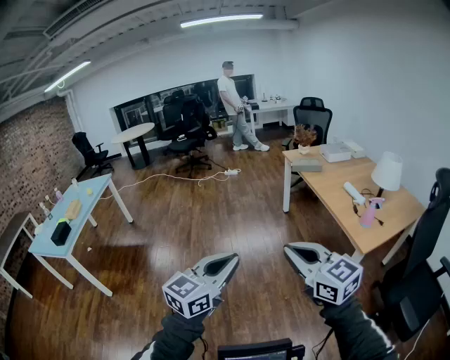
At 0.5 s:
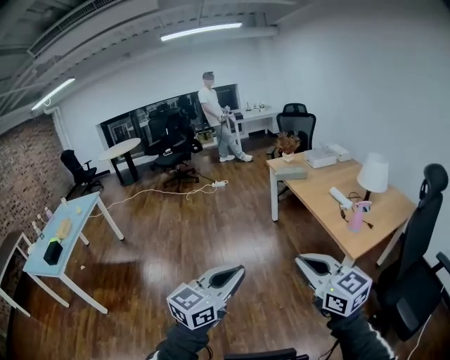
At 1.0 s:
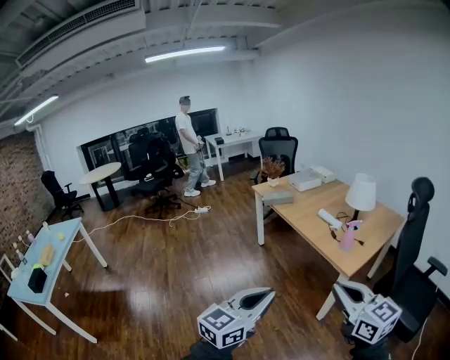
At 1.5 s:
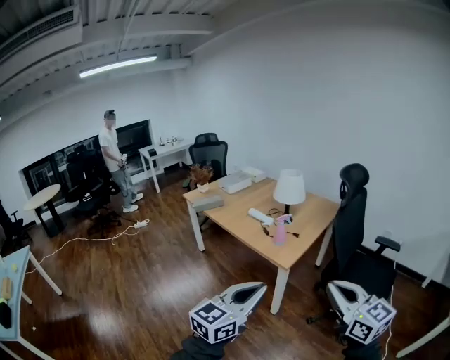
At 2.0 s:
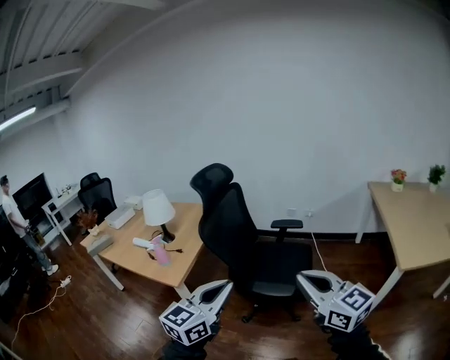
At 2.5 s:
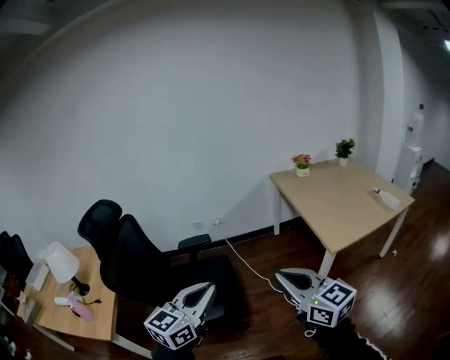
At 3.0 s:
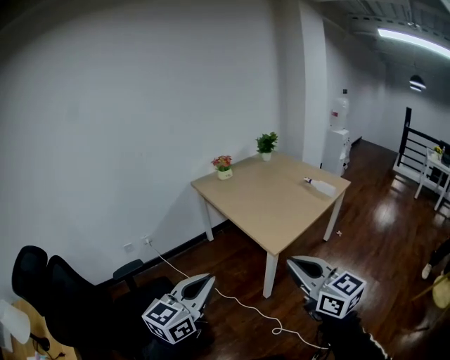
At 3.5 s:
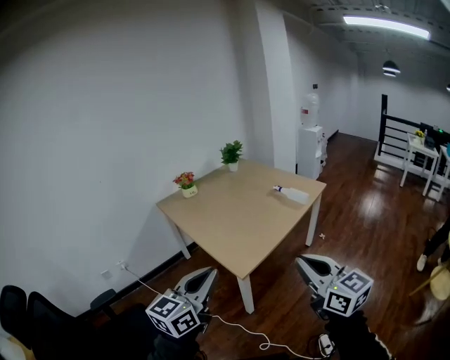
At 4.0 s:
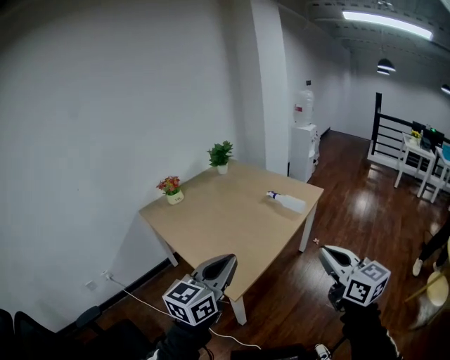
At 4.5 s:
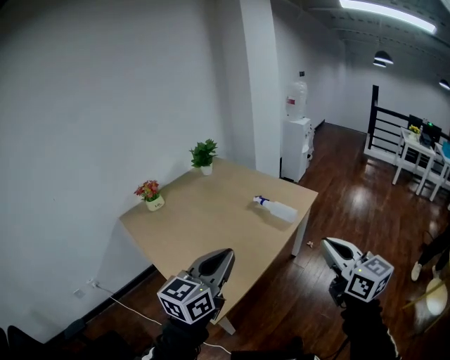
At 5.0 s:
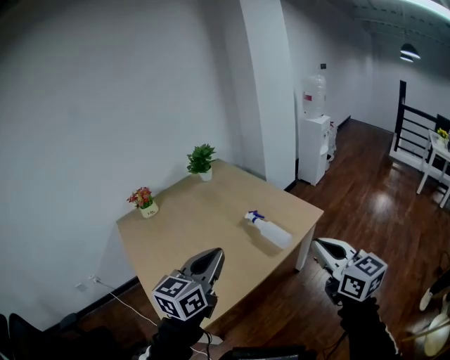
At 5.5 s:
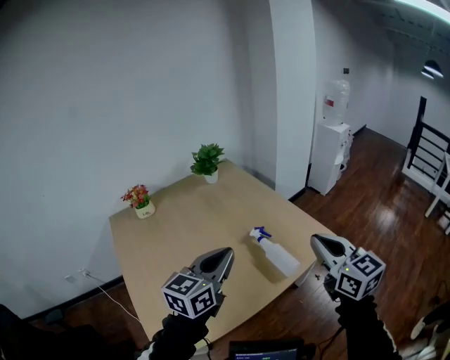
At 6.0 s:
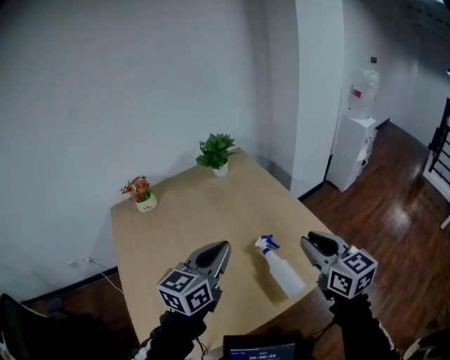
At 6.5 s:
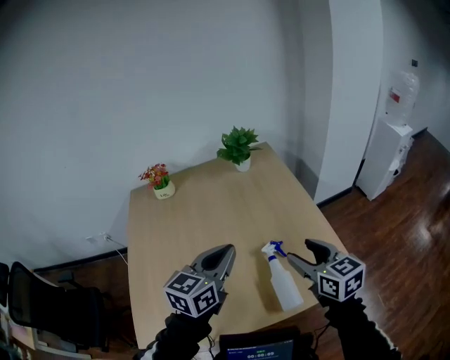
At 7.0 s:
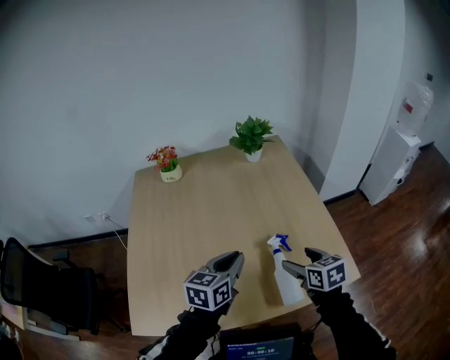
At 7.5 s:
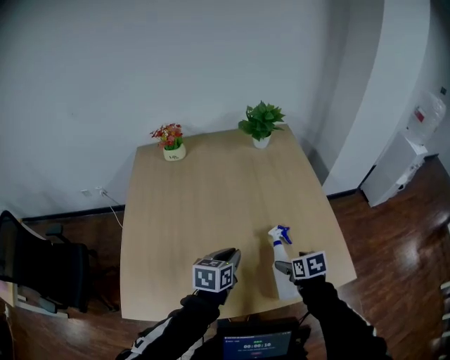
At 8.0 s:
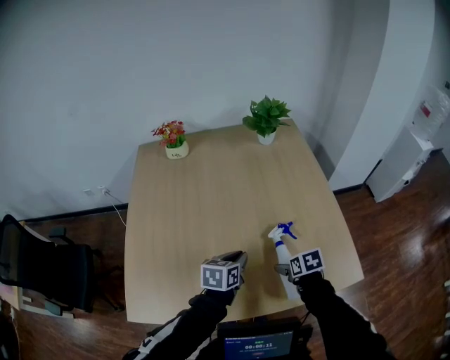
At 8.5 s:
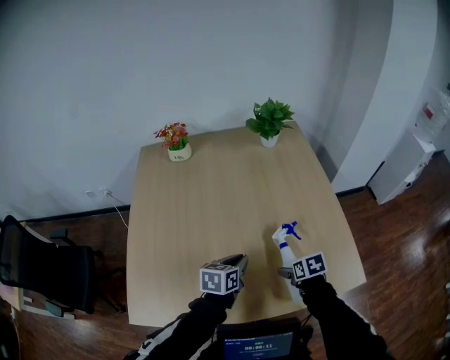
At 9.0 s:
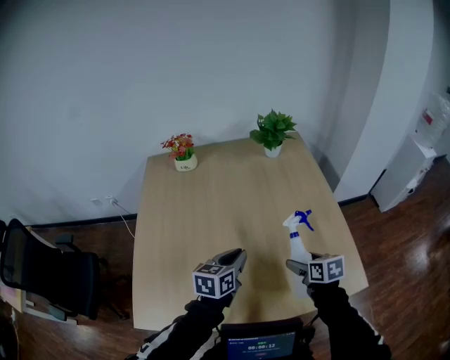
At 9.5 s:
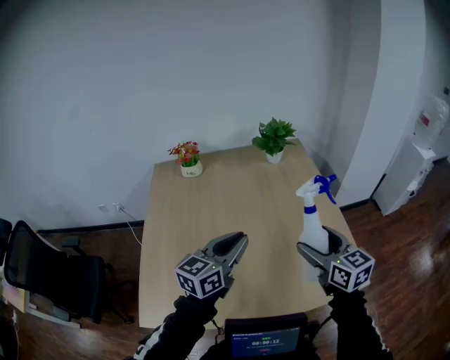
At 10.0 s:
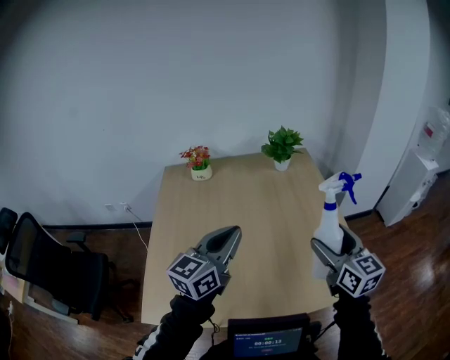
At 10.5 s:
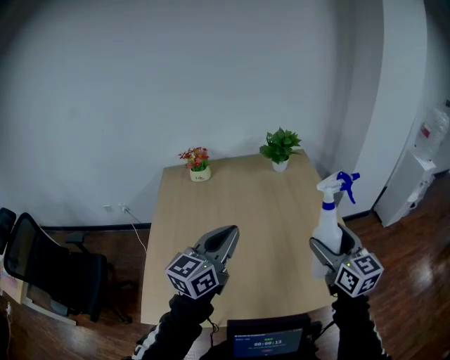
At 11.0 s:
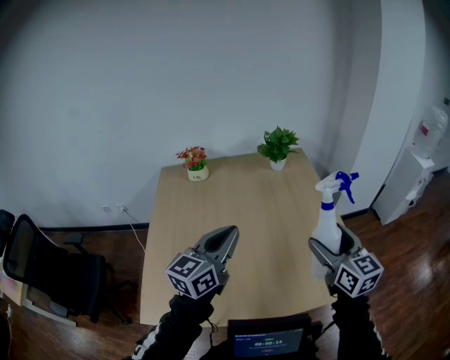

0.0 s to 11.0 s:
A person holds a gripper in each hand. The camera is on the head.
0.0 to 2.0 s: The pair of grippers is taken about 80 cm. The left gripper rotates about 60 degrees; the right gripper swivels approximately 70 degrees.
2.0 to 3.5 s: The two grippers travel together, approximately 80 cm. The left gripper turns by some 60 degrees; the right gripper rotates about 60 degrees.
3.5 to 5.5 s: The two grippers travel together, forward and to the right, roughly 90 cm.
5.5 to 7.5 s: The right gripper goes roughly 35 cm downward, points its fingers some 50 degrees further downward, and opens up, while the left gripper moves downward, some 25 cm, and changes its angle by roughly 50 degrees.
7.5 to 9.0 s: The right gripper changes place by about 5 cm. The left gripper ends up approximately 5 cm from where it was.
9.0 to 11.0 s: The right gripper is displaced upward by about 25 cm, and points its fingers some 40 degrees further upward, while the left gripper heads upward and backward, covering about 20 cm, and turns by approximately 30 degrees.

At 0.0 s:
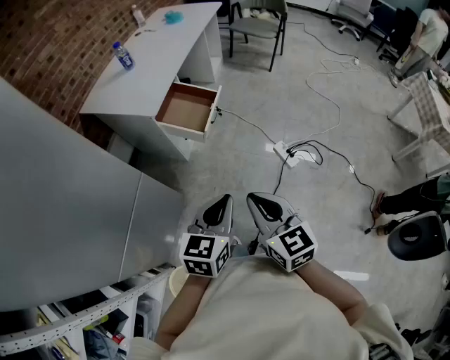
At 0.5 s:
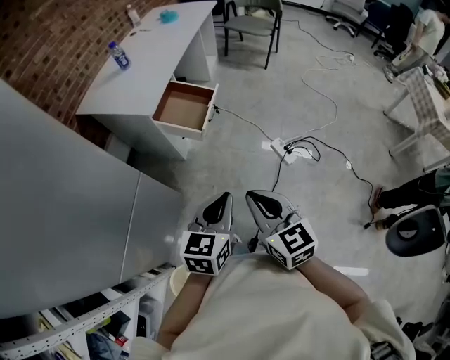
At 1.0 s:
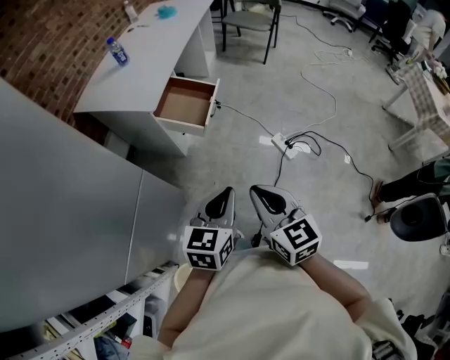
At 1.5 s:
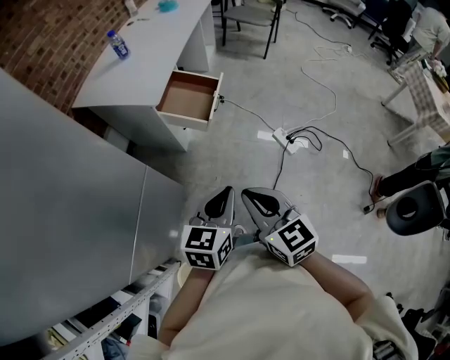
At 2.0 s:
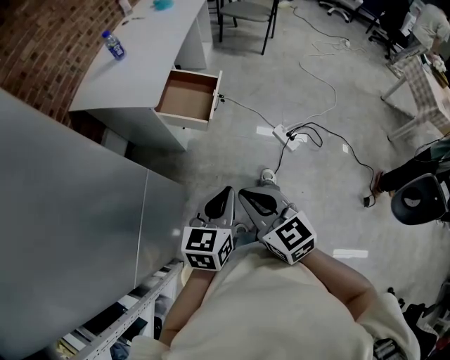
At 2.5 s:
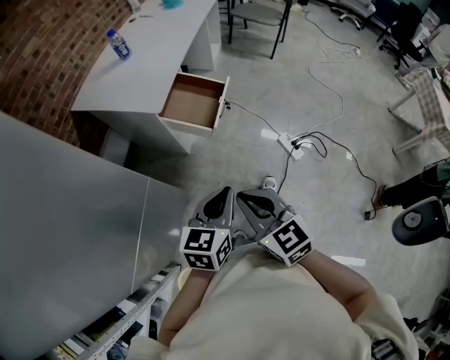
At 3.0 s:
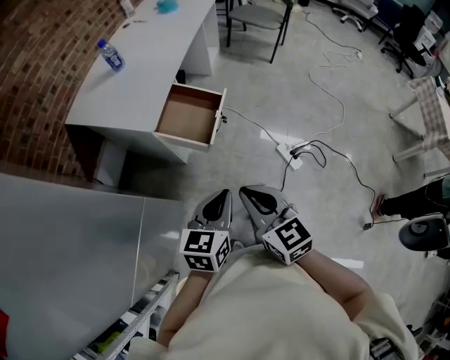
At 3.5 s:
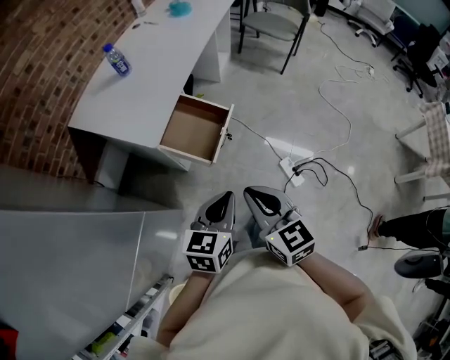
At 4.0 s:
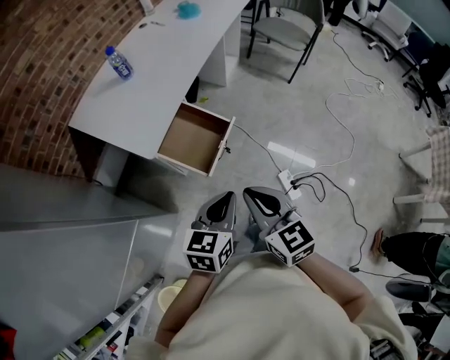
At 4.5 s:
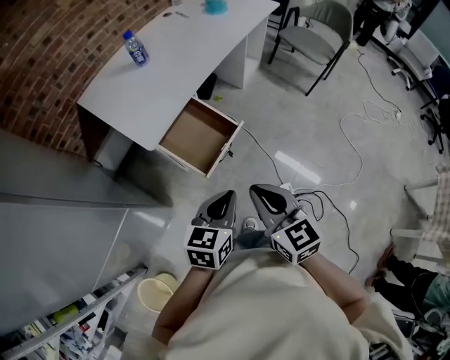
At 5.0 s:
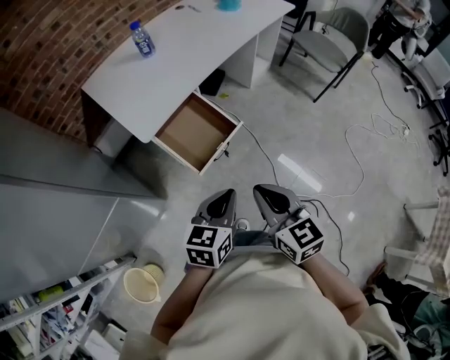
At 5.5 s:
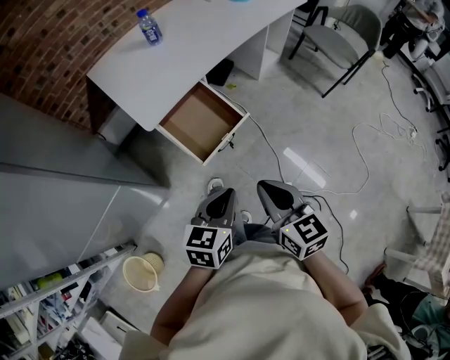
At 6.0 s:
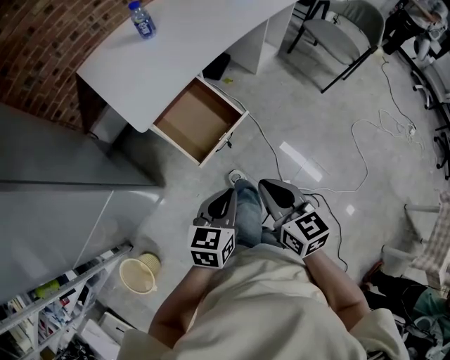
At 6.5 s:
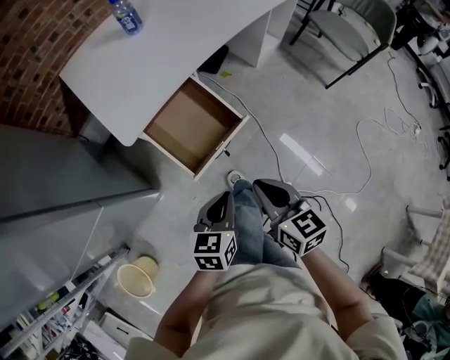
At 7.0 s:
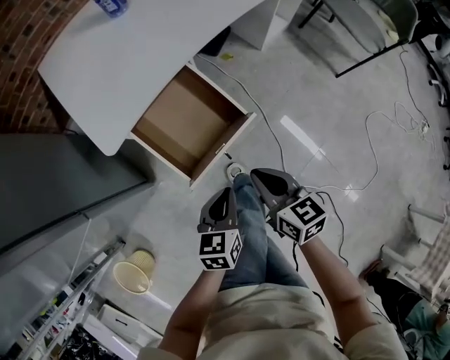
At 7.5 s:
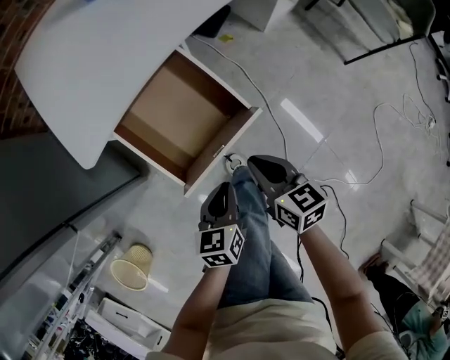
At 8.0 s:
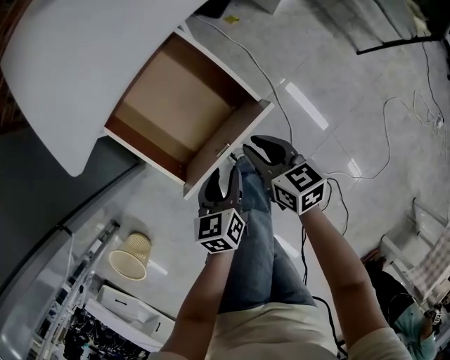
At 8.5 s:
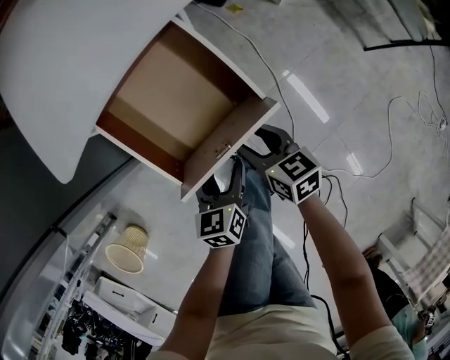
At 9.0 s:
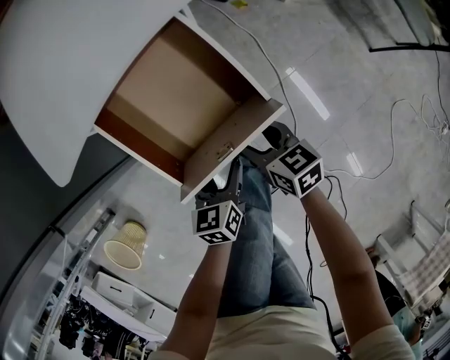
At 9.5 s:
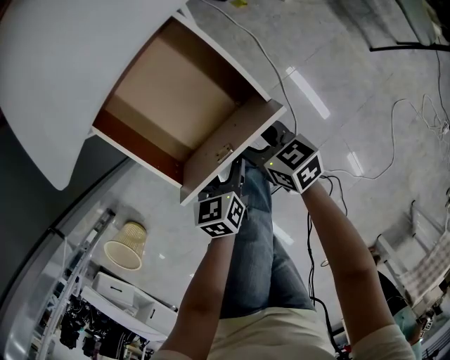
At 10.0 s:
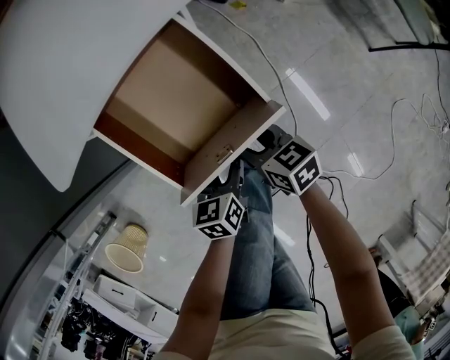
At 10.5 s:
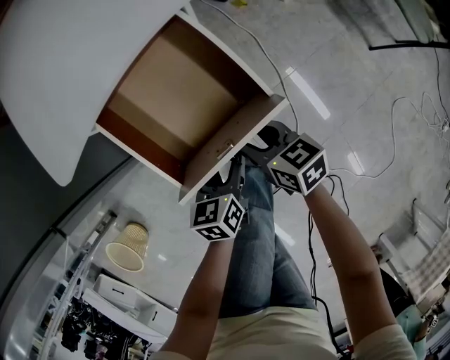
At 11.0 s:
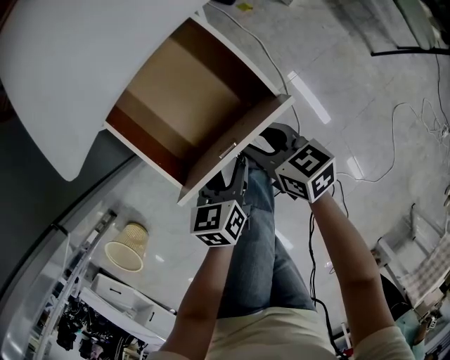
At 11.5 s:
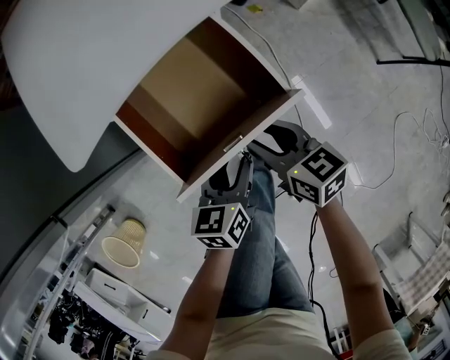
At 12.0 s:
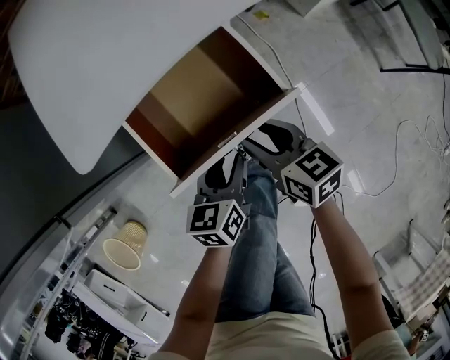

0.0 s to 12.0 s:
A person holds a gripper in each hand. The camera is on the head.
0.0 to 2.0 s: The two grippers go some 10 cm to the left.
2.0 to 4.0 s: Both grippers travel together forward, about 30 cm.
4.0 to 6.0 s: The right gripper goes roughly 15 cm to the right, downward and forward; the left gripper heads downward and to the right, covering approximately 10 cm.
6.0 to 8.0 s: Both grippers move downward and forward, about 35 cm. The right gripper turns by about 20 degrees, and opens up; the left gripper turns by some 30 degrees, and opens.
8.0 to 10.0 s: The left gripper moves roughly 5 cm. The right gripper goes roughly 5 cm downward, and opens its fingers.
10.0 to 12.0 s: The two grippers go roughly 5 cm upward.

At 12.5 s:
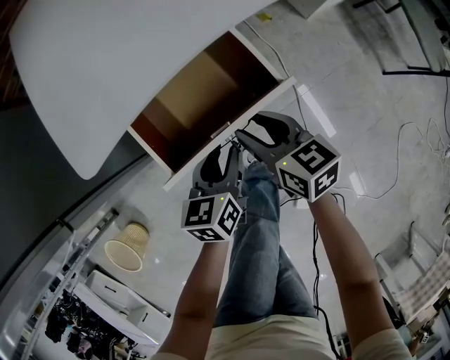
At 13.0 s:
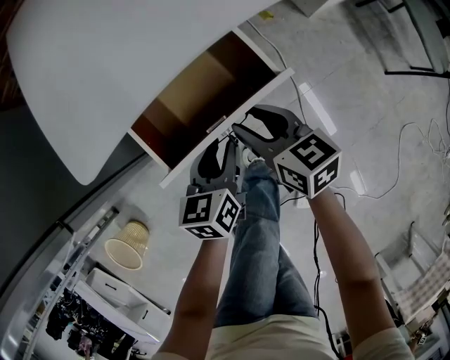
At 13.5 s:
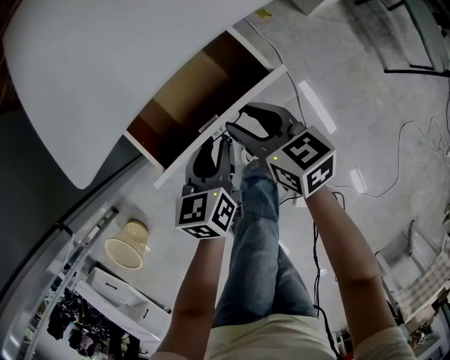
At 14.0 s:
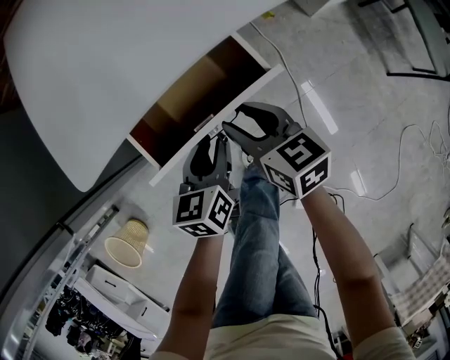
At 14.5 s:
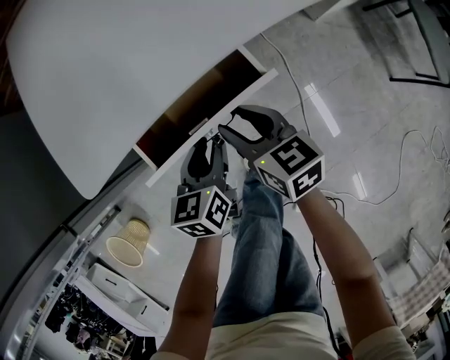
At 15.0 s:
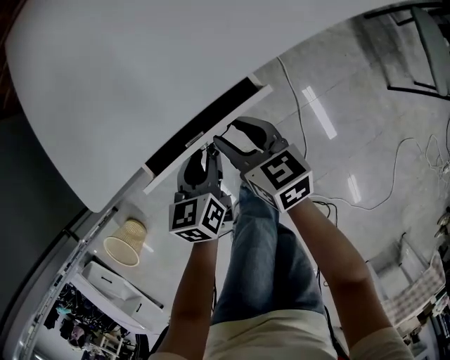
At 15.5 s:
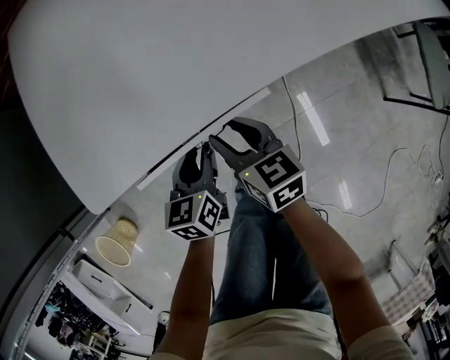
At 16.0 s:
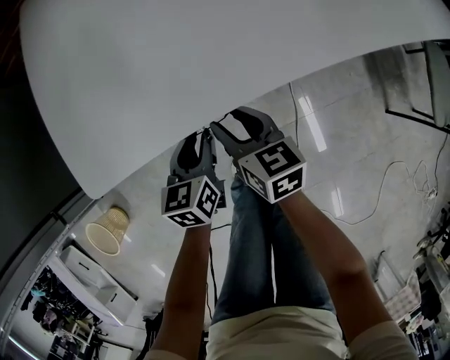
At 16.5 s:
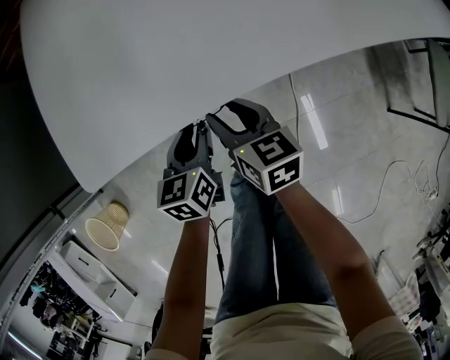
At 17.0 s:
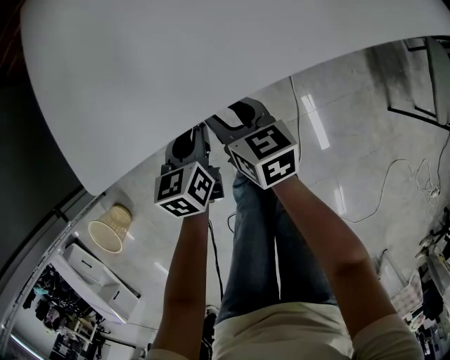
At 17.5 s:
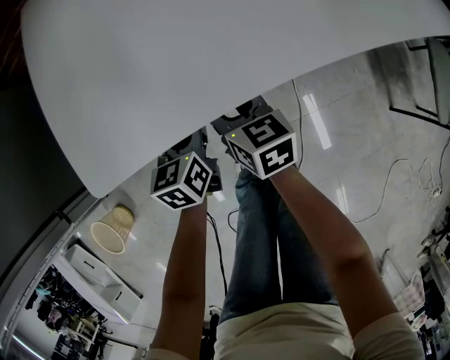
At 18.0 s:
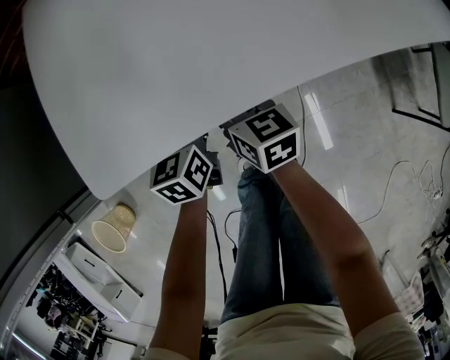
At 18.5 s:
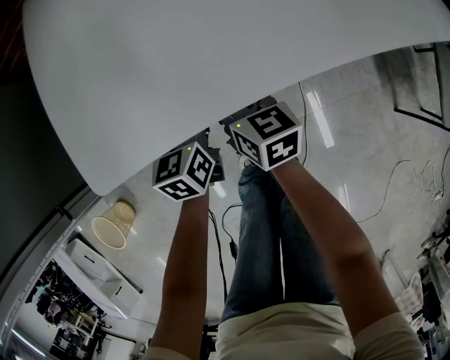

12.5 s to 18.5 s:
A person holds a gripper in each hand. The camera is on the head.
12.5 to 14.5 s: The left gripper shifts some 5 cm forward.
14.5 to 16.5 s: The grippers both shift forward by roughly 5 cm.
16.5 to 18.5 s: Both grippers travel together forward, roughly 5 cm.
